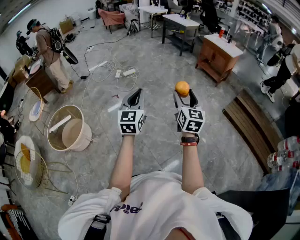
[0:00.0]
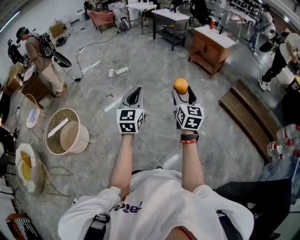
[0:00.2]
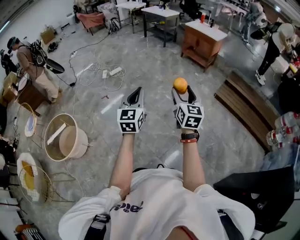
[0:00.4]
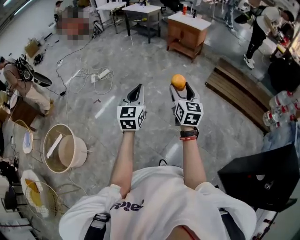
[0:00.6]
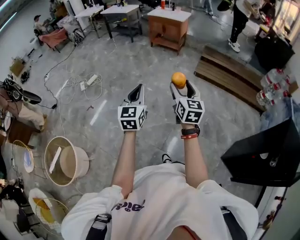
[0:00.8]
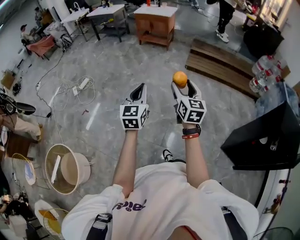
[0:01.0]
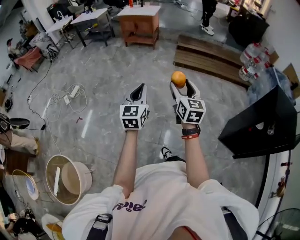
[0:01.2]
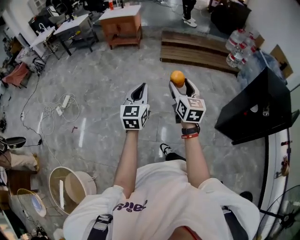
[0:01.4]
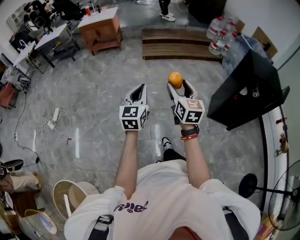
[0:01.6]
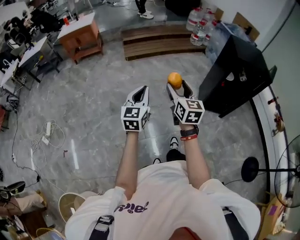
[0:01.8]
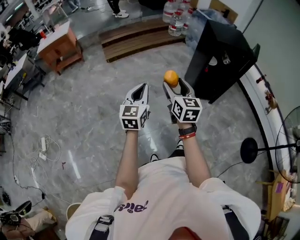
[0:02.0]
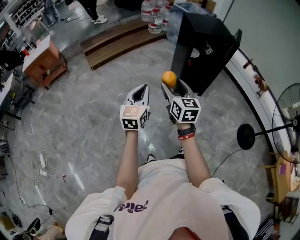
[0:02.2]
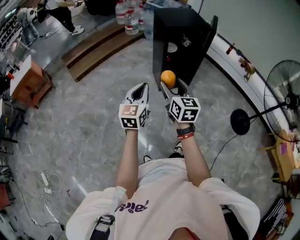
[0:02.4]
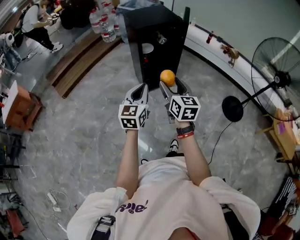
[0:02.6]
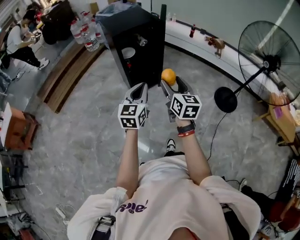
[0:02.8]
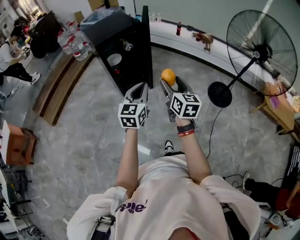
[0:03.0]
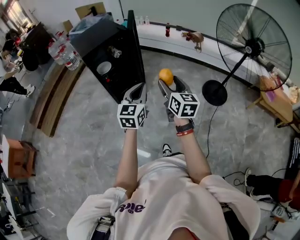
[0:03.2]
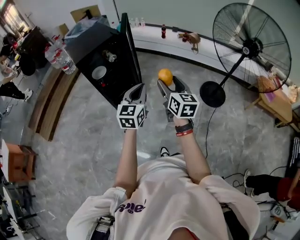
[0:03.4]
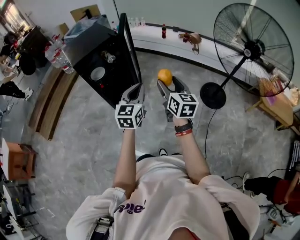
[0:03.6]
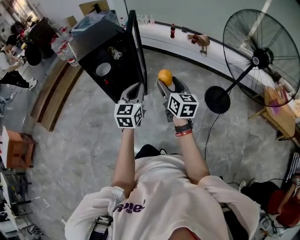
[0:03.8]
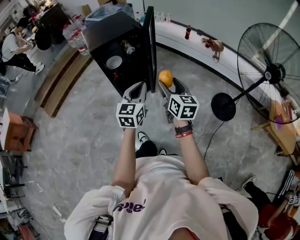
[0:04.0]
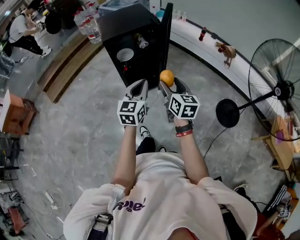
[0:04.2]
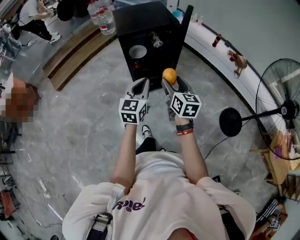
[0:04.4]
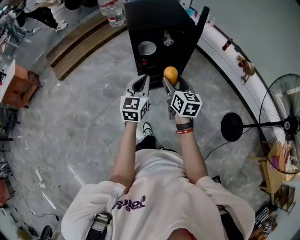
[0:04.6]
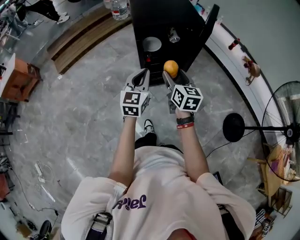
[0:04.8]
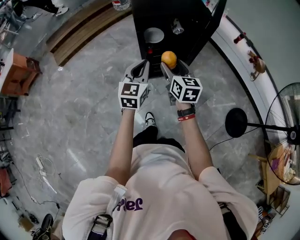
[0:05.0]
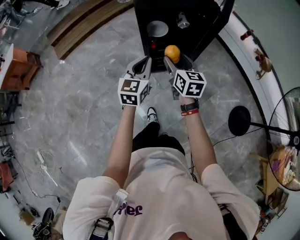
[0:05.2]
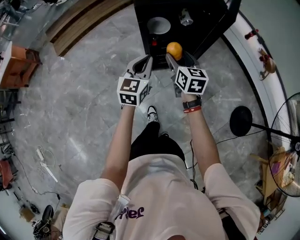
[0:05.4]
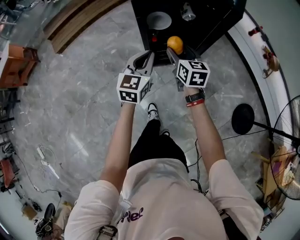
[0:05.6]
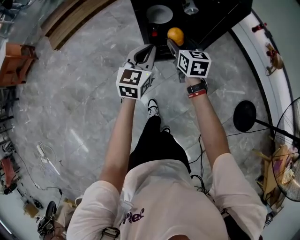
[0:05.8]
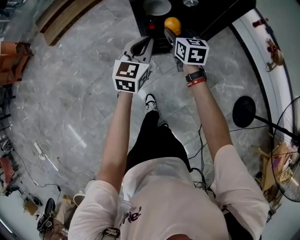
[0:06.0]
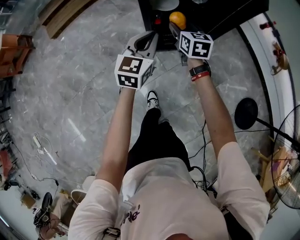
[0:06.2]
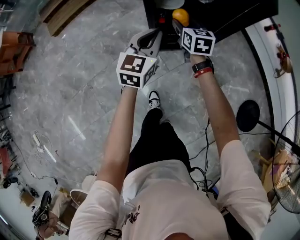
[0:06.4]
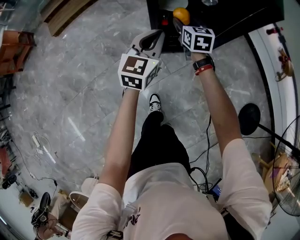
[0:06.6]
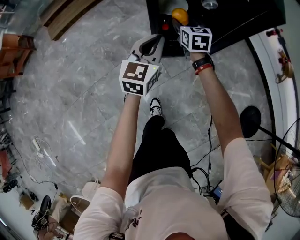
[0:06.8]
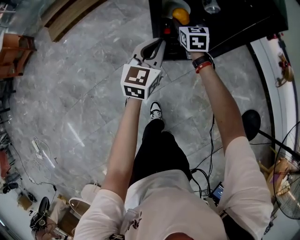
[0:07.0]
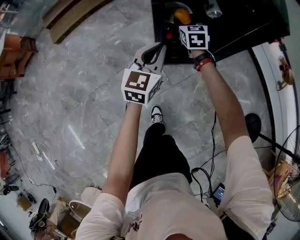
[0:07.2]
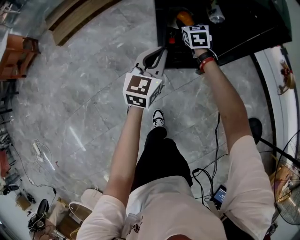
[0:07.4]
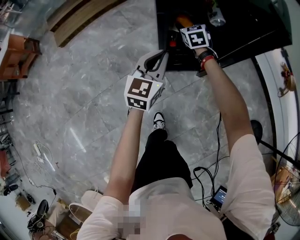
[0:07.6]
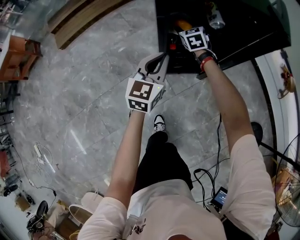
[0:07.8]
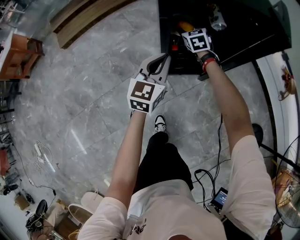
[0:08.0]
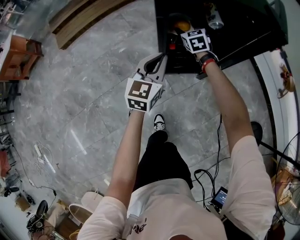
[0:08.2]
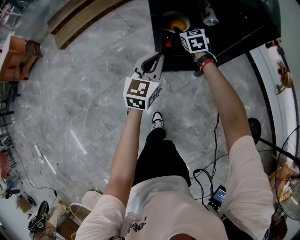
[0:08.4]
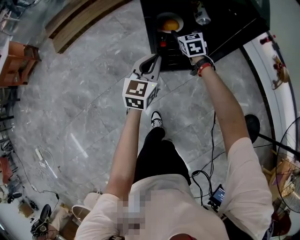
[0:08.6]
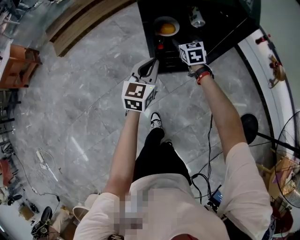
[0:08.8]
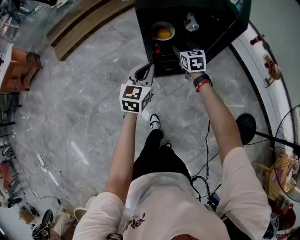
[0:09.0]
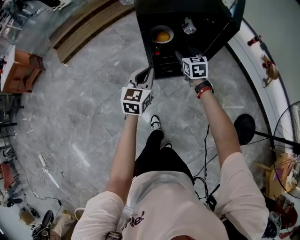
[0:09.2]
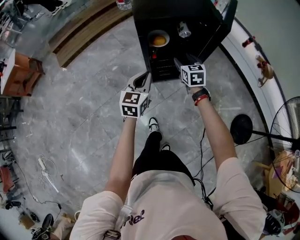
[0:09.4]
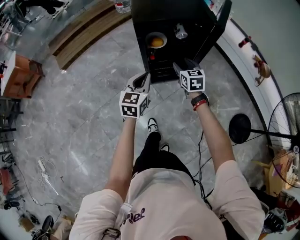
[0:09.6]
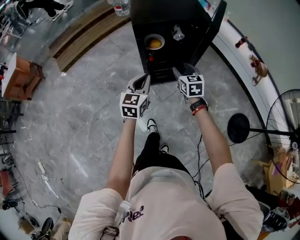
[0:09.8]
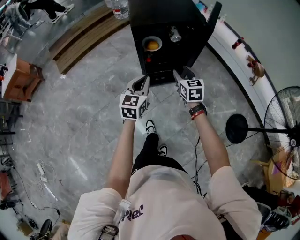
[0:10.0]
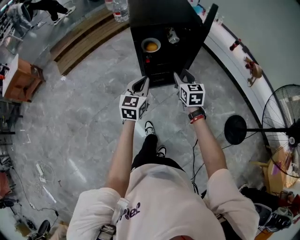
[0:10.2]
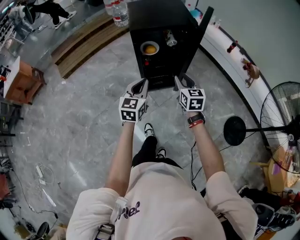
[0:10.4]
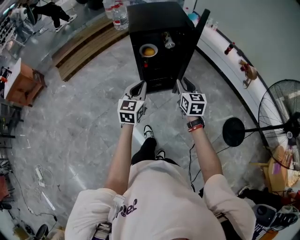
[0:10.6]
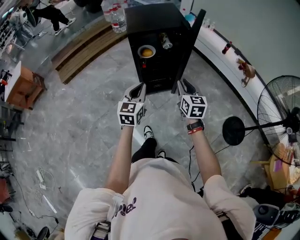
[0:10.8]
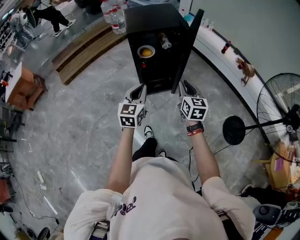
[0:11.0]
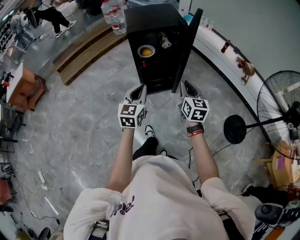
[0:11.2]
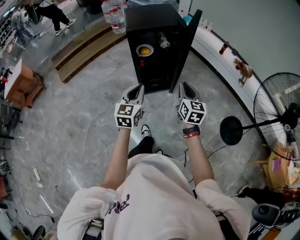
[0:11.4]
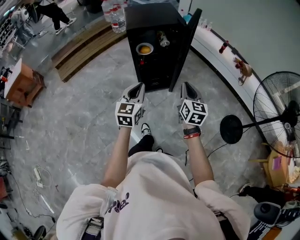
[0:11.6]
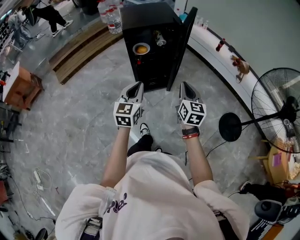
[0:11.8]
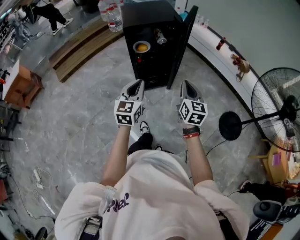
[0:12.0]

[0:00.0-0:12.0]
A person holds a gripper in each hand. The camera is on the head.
0:00.0 to 0:01.6: The right gripper ends up roughly 30 cm from where it was, and changes its angle by about 50 degrees, while the left gripper moves approximately 25 cm, and rotates approximately 60 degrees.
0:01.6 to 0:03.0: The pair of grippers is taken approximately 70 cm. The left gripper changes its angle by roughly 70 degrees. The right gripper changes its angle by approximately 60 degrees.
0:03.0 to 0:04.4: The grippers both shift forward by some 20 cm. The left gripper moves approximately 15 cm to the right and comes back, while the right gripper reaches roughly 15 cm to the right, then returns.
0:04.4 to 0:06.0: The two grippers go some 35 cm forward and downward.
0:06.0 to 0:07.6: The left gripper goes roughly 10 cm downward and forward. The right gripper is displaced forward and downward by some 25 cm, and changes its angle by about 30 degrees.
0:07.6 to 0:09.0: The left gripper heads upward and backward, covering some 10 cm. The right gripper moves backward, upward and to the right, approximately 20 cm.
0:09.0 to 0:10.4: The left gripper is displaced backward and upward by some 25 cm; the right gripper is displaced backward and upward by approximately 35 cm, and closes.
0:10.4 to 0:12.0: The left gripper goes about 15 cm backward and upward, while the right gripper travels backward, to the right and upward by approximately 20 cm, and closes its fingers.

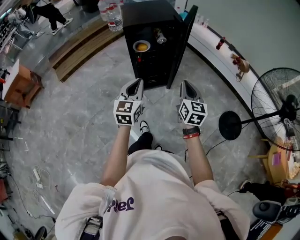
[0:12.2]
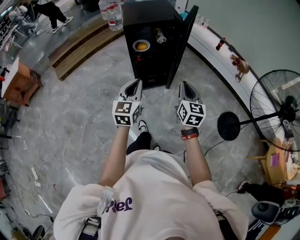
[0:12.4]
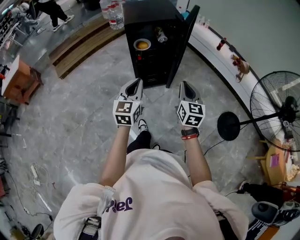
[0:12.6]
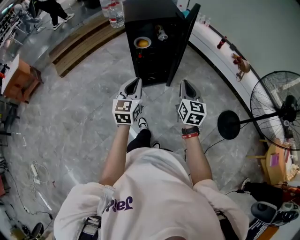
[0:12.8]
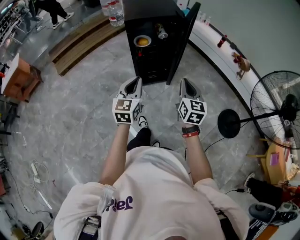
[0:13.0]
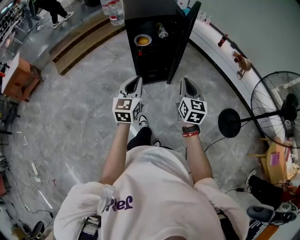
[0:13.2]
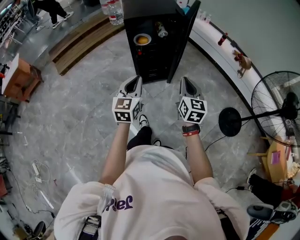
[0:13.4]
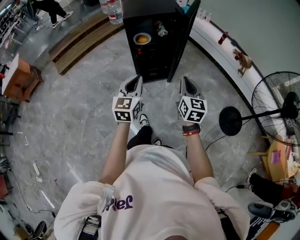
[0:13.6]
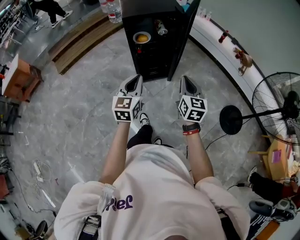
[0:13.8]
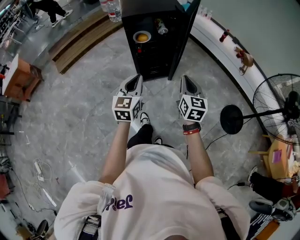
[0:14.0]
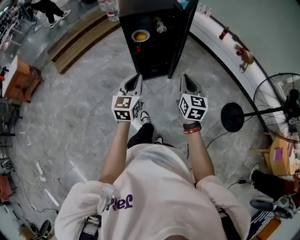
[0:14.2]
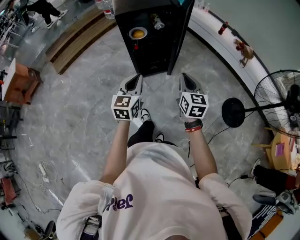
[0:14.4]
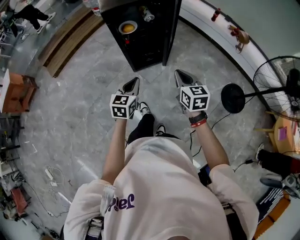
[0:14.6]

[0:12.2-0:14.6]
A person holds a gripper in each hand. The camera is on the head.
0:12.2 to 0:13.4: The grippers move only a little.
0:13.4 to 0:14.6: The left gripper is displaced downward by roughly 10 cm. Meanwhile the right gripper ends up some 5 cm from where it was.

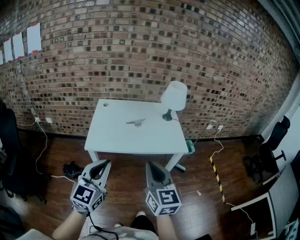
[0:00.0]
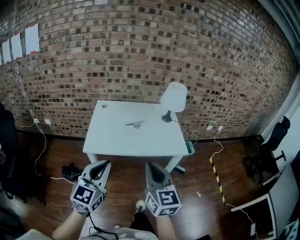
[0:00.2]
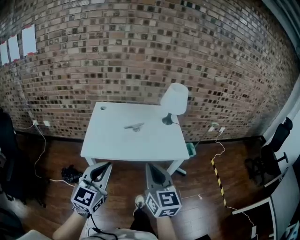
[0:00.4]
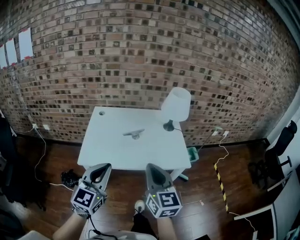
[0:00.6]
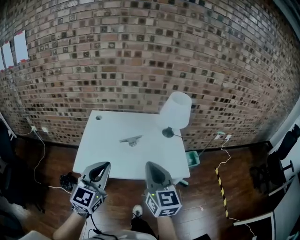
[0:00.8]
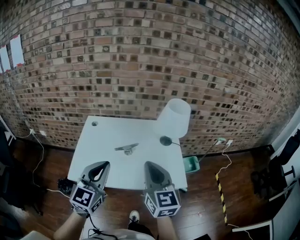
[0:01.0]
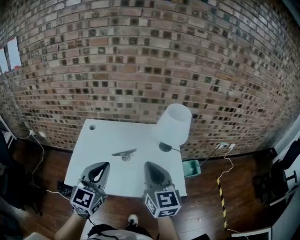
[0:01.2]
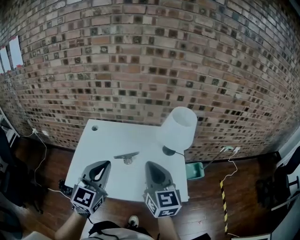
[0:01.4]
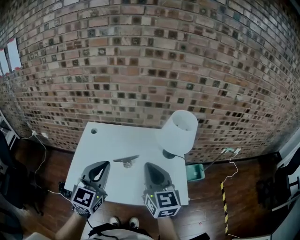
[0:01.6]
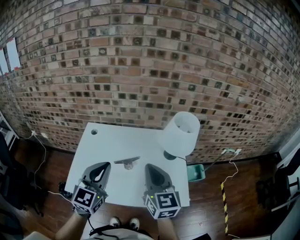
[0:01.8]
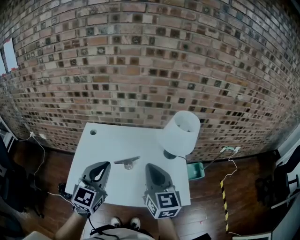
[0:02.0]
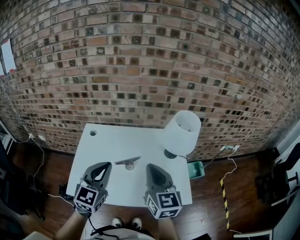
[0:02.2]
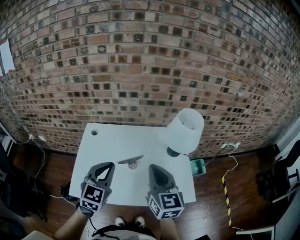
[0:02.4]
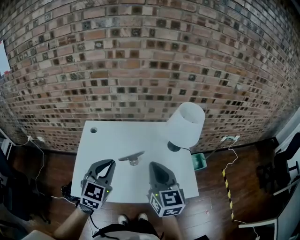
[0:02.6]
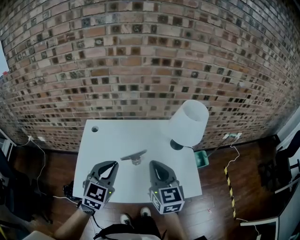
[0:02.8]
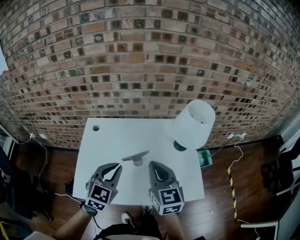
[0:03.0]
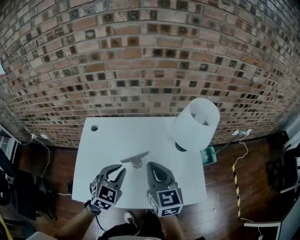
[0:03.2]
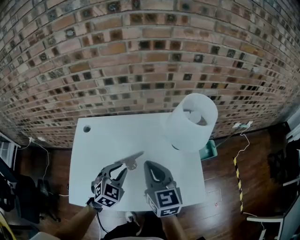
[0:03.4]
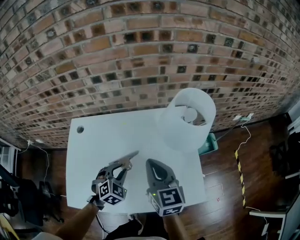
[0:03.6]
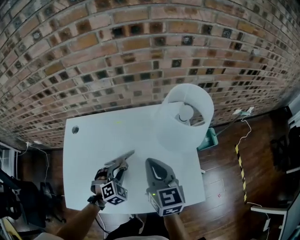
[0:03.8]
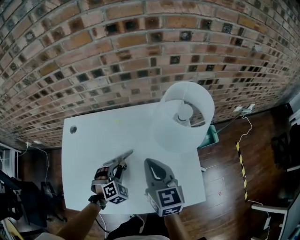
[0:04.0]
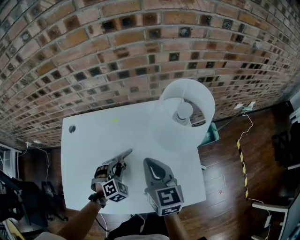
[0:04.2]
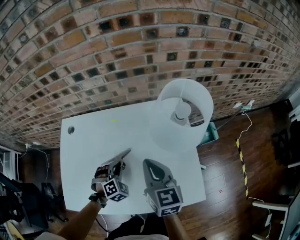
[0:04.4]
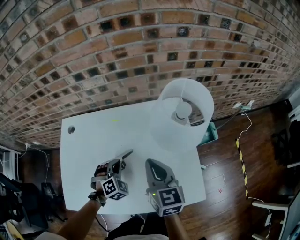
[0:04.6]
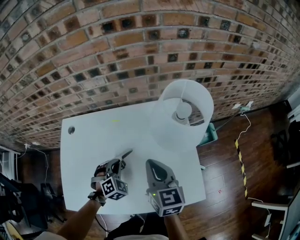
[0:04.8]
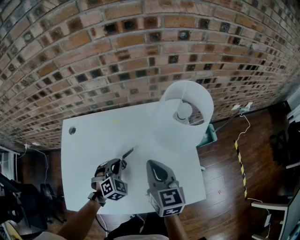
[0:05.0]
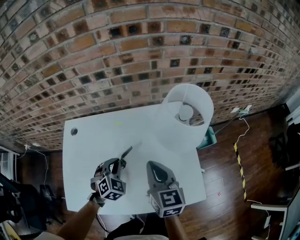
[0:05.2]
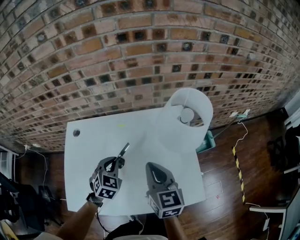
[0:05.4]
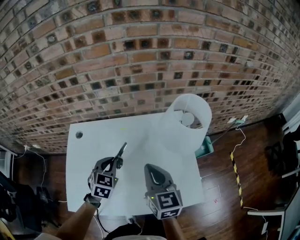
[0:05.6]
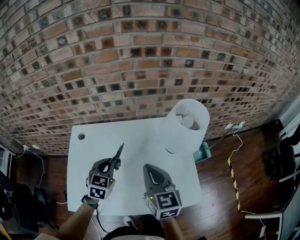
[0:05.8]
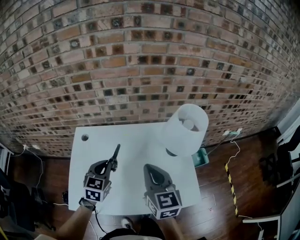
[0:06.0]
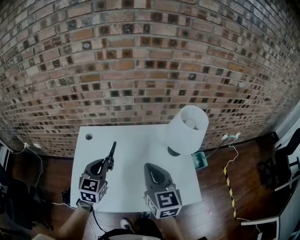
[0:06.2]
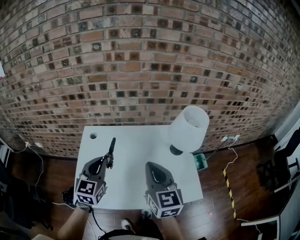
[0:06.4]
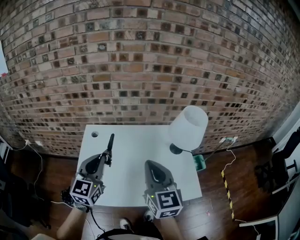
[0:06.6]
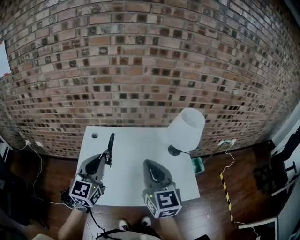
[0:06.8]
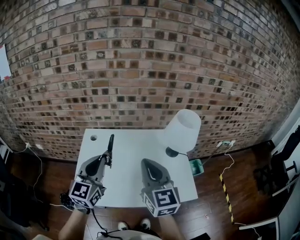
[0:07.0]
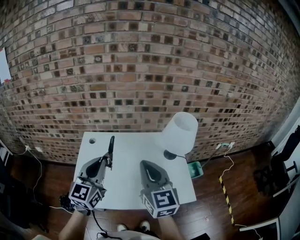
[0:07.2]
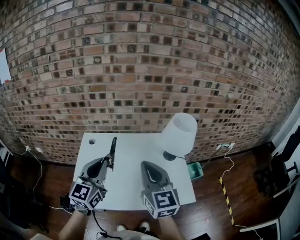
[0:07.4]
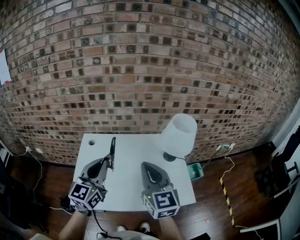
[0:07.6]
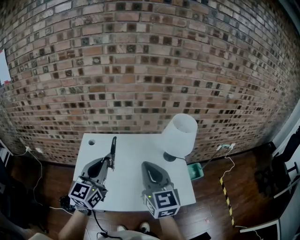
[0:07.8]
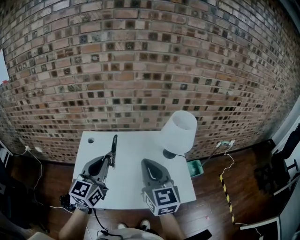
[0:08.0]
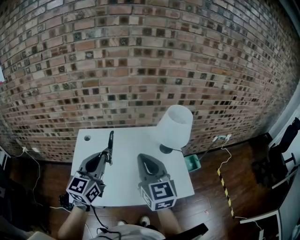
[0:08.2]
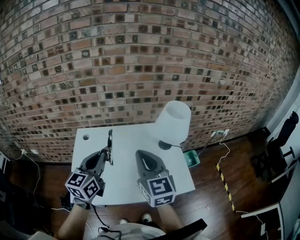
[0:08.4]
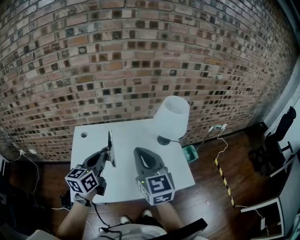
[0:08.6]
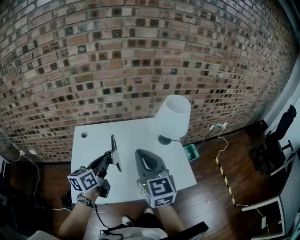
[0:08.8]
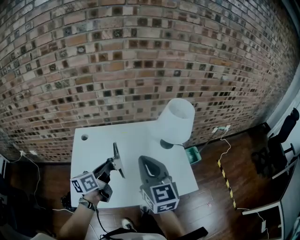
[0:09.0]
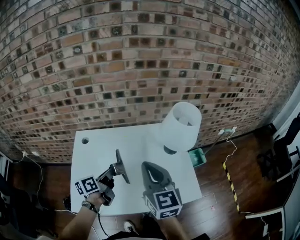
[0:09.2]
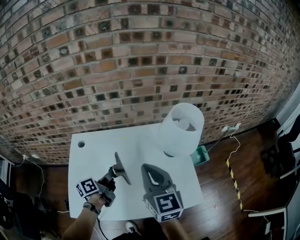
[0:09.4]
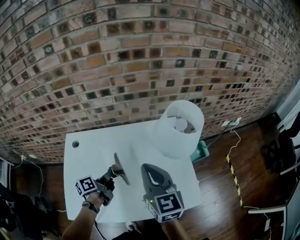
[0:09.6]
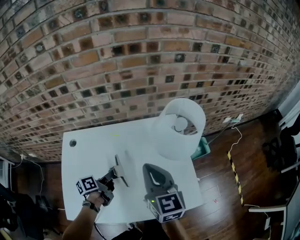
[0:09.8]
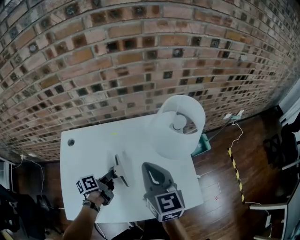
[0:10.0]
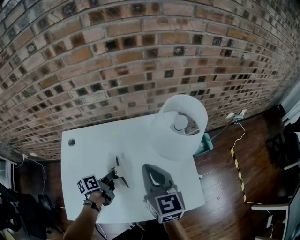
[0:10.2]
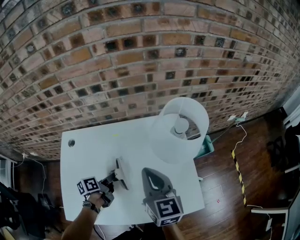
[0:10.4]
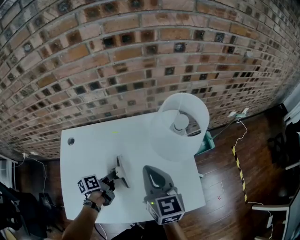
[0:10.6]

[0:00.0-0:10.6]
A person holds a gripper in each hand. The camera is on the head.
0:00.0 to 0:01.6: The two grippers go about 40 cm forward.
0:01.6 to 0:03.0: The right gripper shifts approximately 10 cm downward and to the left. Meanwhile the left gripper heads downward and forward, covering about 10 cm, and changes its angle by roughly 20 degrees.
0:03.0 to 0:04.6: The left gripper travels downward and forward by some 25 cm, turns by about 50 degrees, and opens, then closes once more; the right gripper is displaced downward, to the right and forward by about 15 cm.
0:04.6 to 0:06.0: The right gripper shifts roughly 15 cm upward and to the left, while the left gripper heads upward and to the left, covering about 20 cm, and twists some 50 degrees counterclockwise, seen from behind.
0:06.0 to 0:07.6: The right gripper travels upward and backward by approximately 15 cm, while the left gripper is displaced upward and backward by some 20 cm, and points its fingers about 30 degrees further upward.
0:07.6 to 0:09.0: The left gripper goes approximately 15 cm downward, and rolls counterclockwise, seen from behind, by roughly 40 degrees.
0:09.0 to 0:10.6: The left gripper is displaced downward and forward by some 25 cm, and changes its angle by roughly 30 degrees; the right gripper is displaced forward, downward and to the right by some 20 cm.
